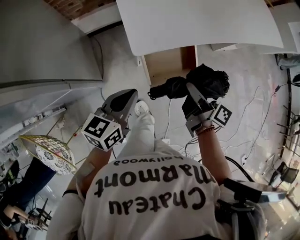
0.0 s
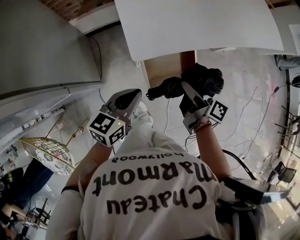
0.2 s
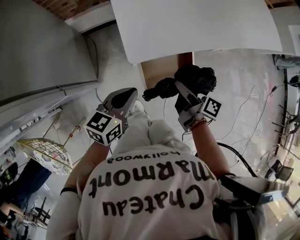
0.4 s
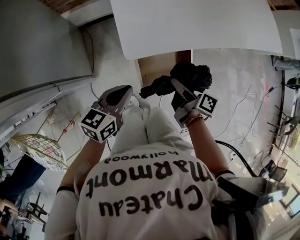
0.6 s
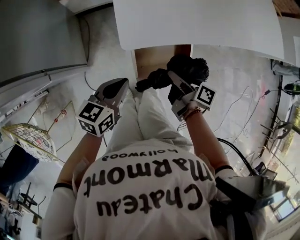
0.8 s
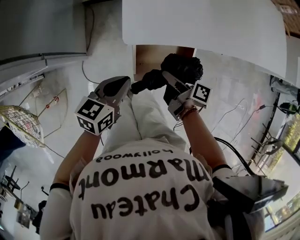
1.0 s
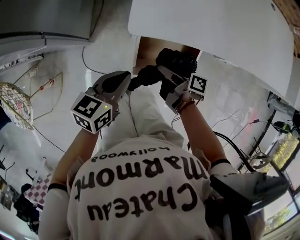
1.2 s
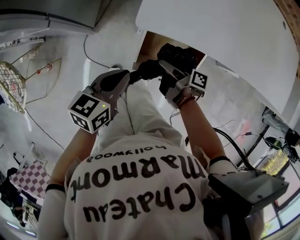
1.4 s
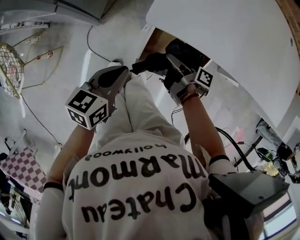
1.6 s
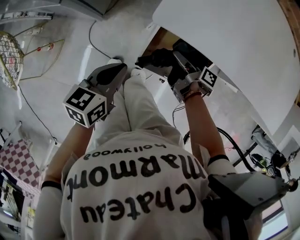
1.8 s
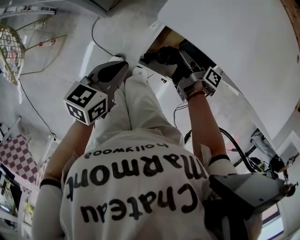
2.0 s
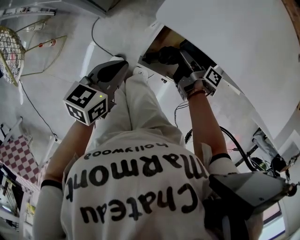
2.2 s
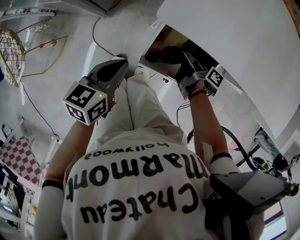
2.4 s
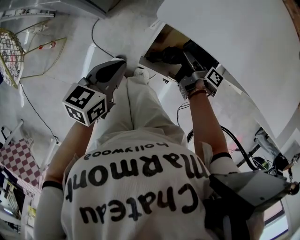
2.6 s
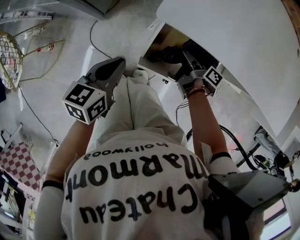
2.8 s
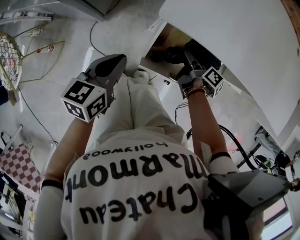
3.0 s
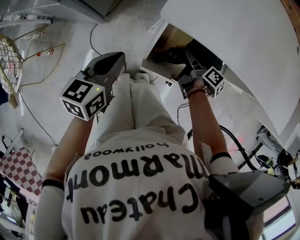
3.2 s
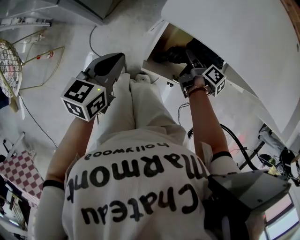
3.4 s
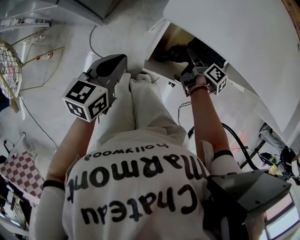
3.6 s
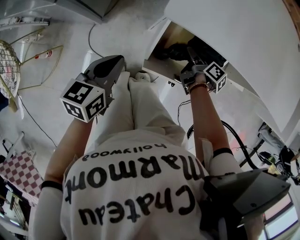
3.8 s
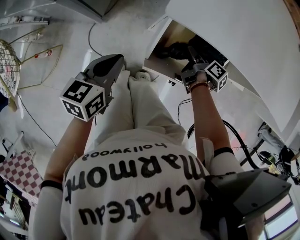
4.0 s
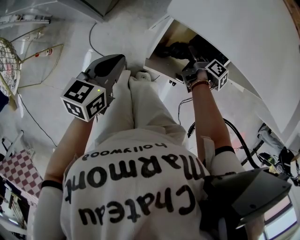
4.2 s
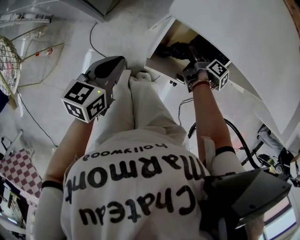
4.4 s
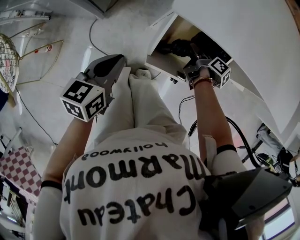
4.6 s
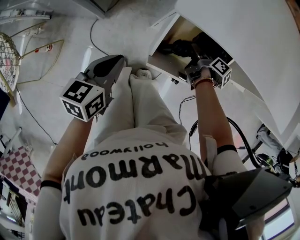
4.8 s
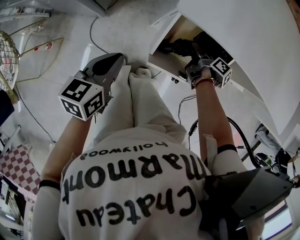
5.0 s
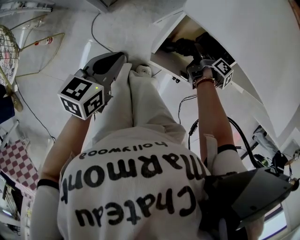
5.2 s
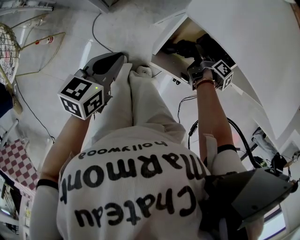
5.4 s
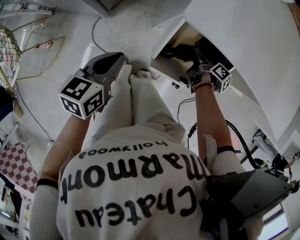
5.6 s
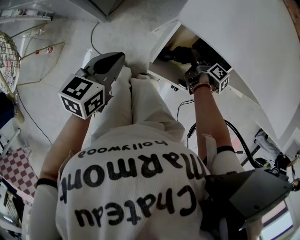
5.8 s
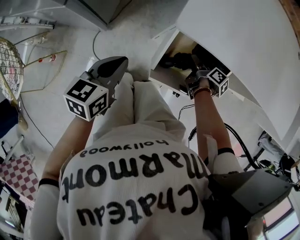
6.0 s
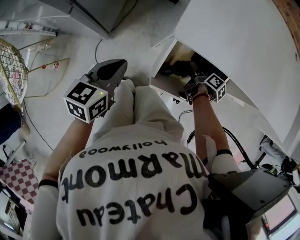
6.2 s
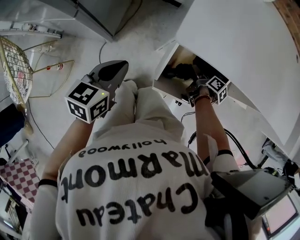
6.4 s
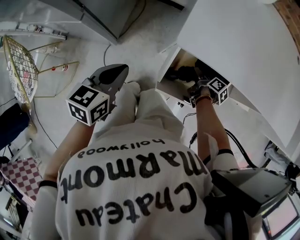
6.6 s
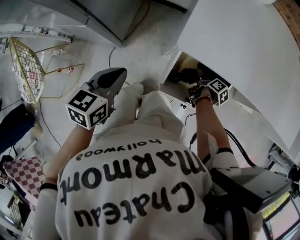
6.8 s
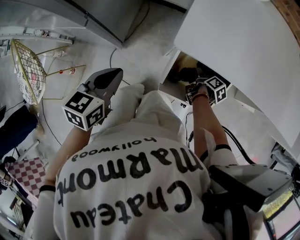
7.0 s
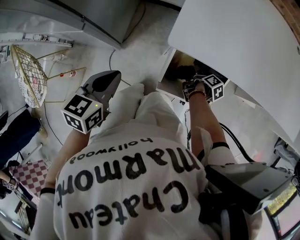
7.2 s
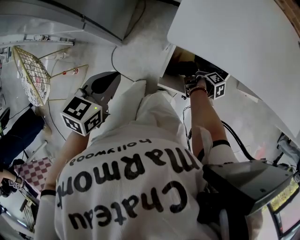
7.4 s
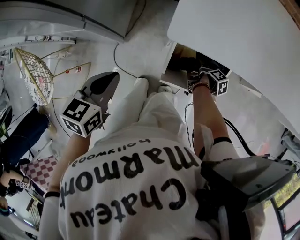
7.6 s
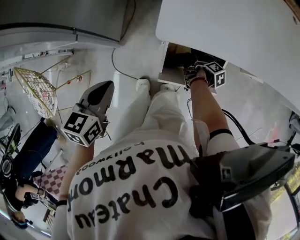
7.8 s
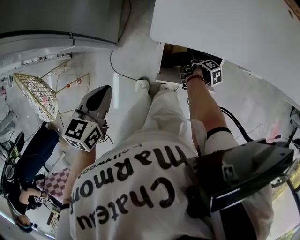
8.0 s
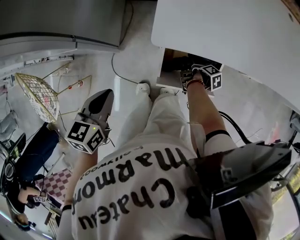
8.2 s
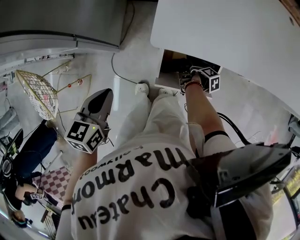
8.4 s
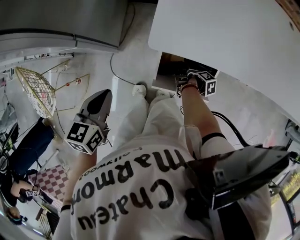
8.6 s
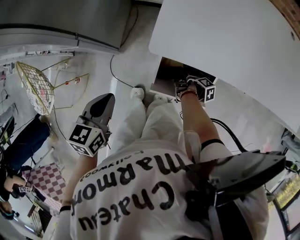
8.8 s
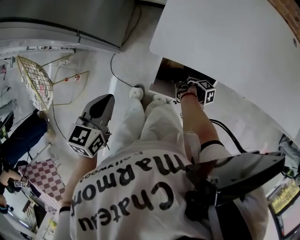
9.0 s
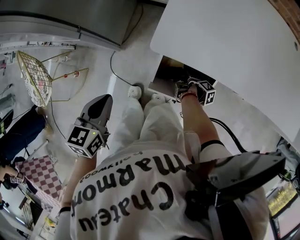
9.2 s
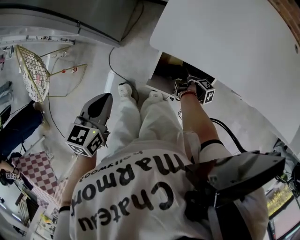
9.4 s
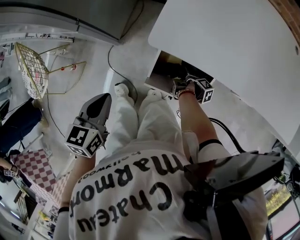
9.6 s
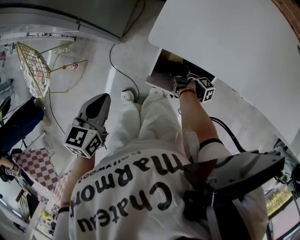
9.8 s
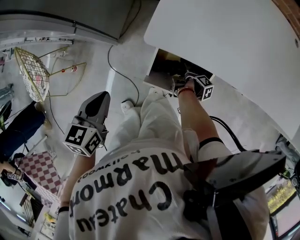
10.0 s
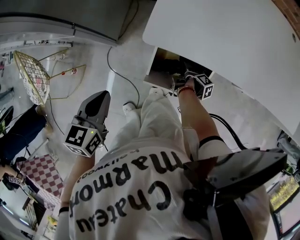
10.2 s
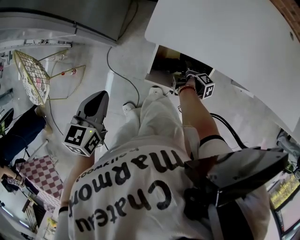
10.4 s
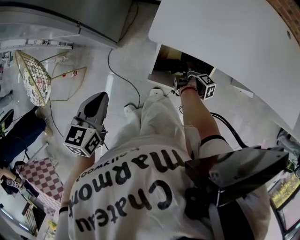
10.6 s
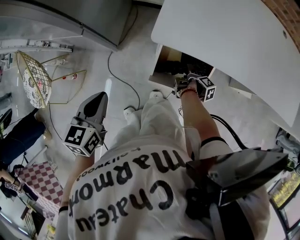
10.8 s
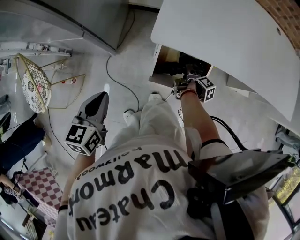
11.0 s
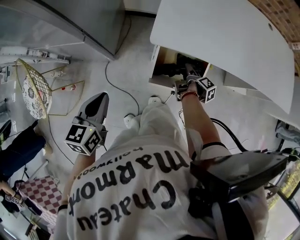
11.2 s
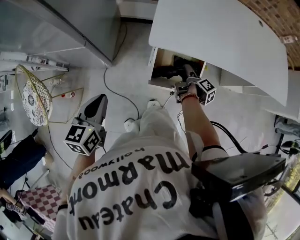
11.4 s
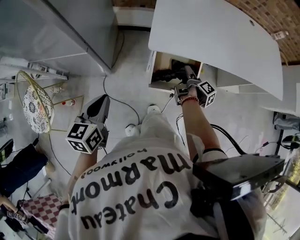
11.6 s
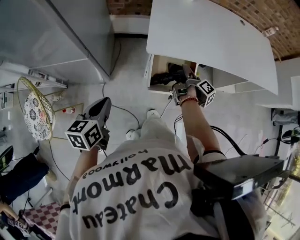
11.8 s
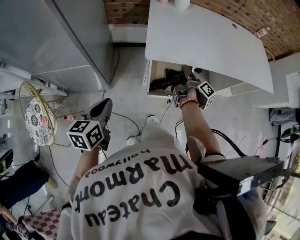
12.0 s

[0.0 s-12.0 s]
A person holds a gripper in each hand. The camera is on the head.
0.0 to 1.6 s: The left gripper shifts roughly 10 cm downward, and swivels roughly 30 degrees.
6.0 to 7.6 s: The left gripper heads upward, covering roughly 10 cm.
10.4 to 12.0 s: The left gripper shifts by about 10 cm.

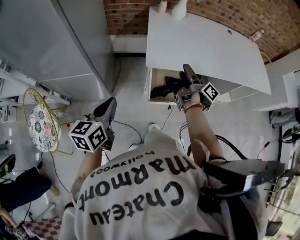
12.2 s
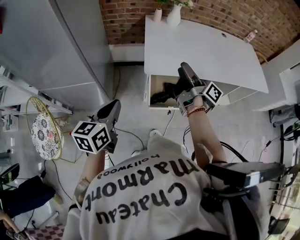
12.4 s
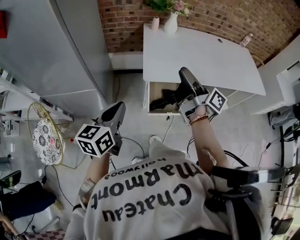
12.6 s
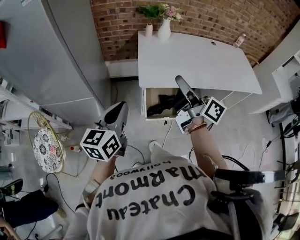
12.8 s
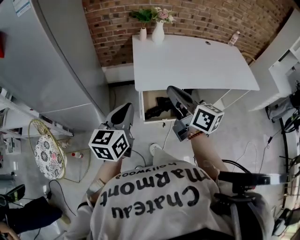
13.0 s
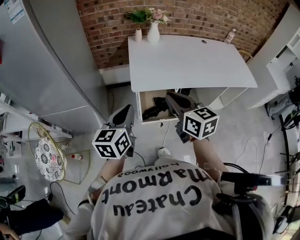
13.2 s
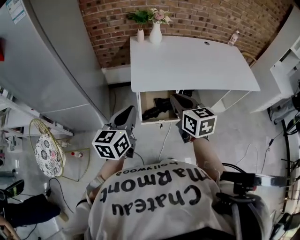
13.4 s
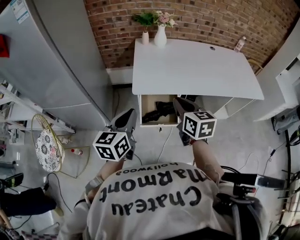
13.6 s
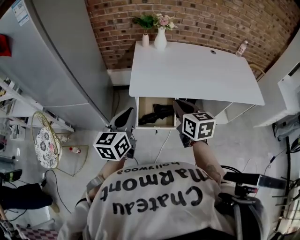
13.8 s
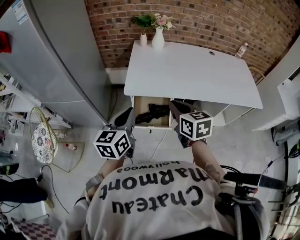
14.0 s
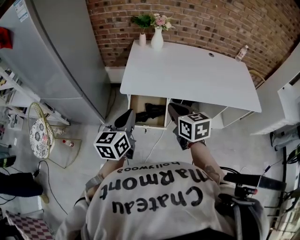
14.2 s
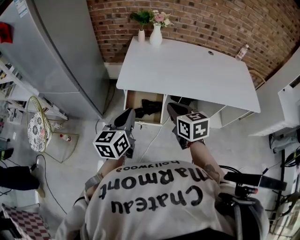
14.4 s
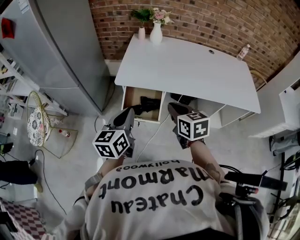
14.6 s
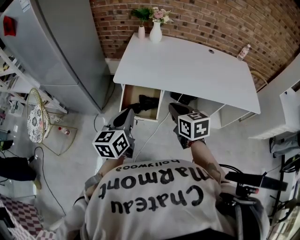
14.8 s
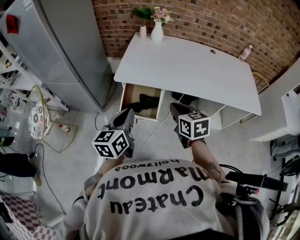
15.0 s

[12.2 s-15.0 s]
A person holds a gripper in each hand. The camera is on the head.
12.2 to 13.6 s: The left gripper moves about 20 cm.
13.6 to 15.0 s: The left gripper changes place by roughly 20 cm.

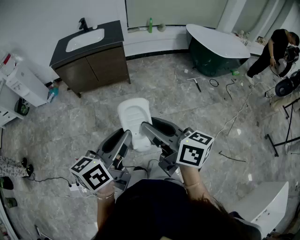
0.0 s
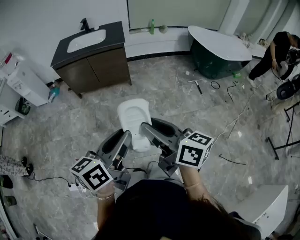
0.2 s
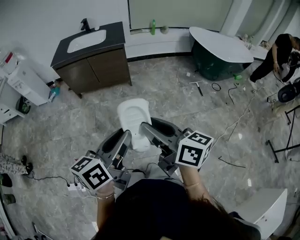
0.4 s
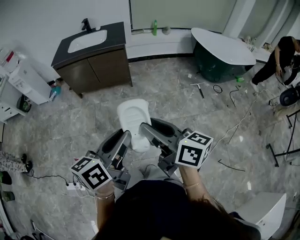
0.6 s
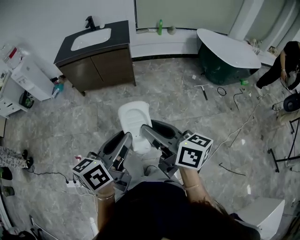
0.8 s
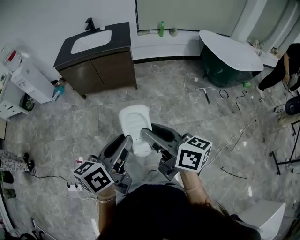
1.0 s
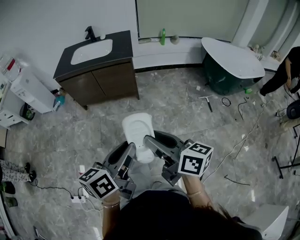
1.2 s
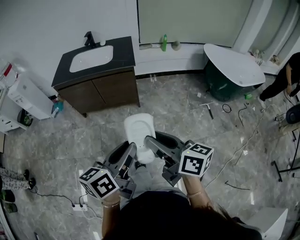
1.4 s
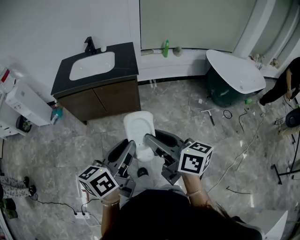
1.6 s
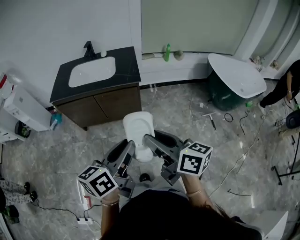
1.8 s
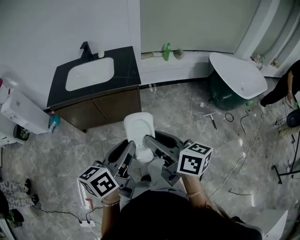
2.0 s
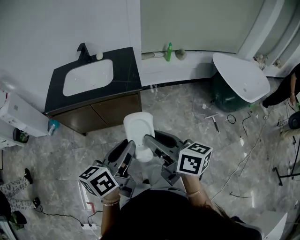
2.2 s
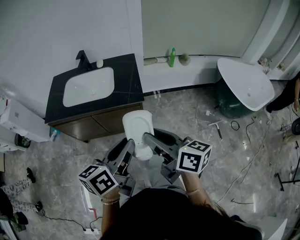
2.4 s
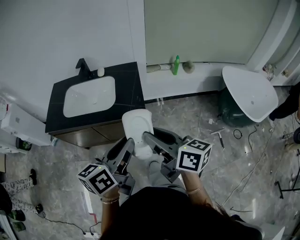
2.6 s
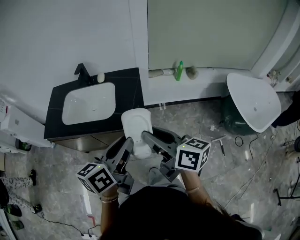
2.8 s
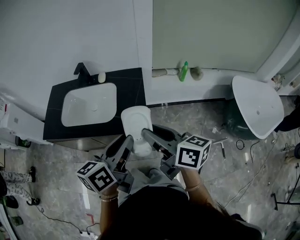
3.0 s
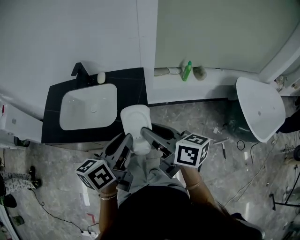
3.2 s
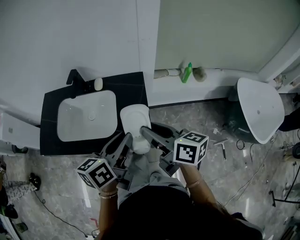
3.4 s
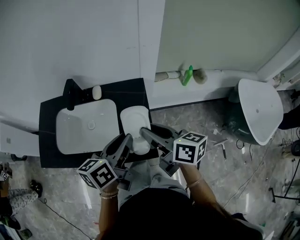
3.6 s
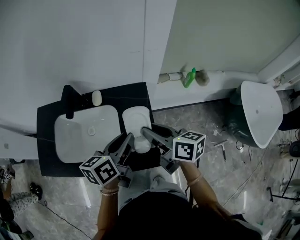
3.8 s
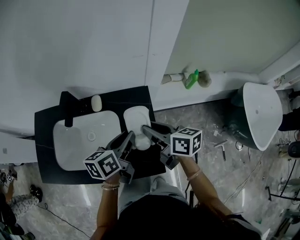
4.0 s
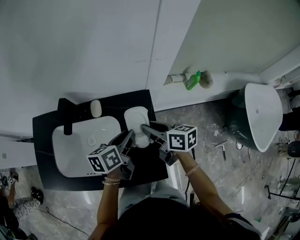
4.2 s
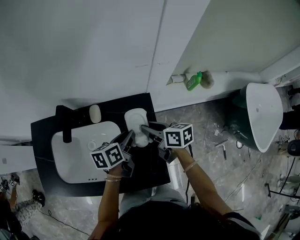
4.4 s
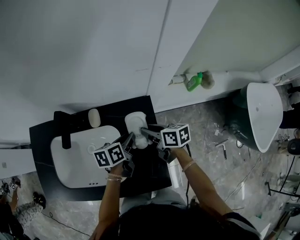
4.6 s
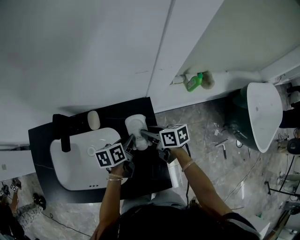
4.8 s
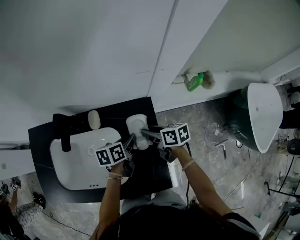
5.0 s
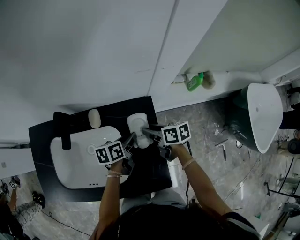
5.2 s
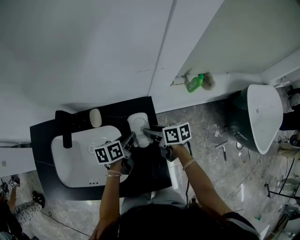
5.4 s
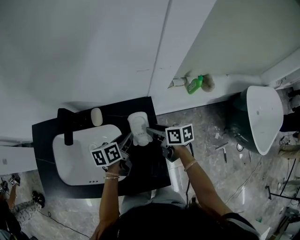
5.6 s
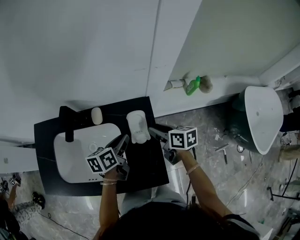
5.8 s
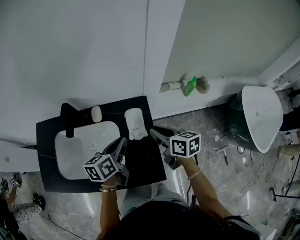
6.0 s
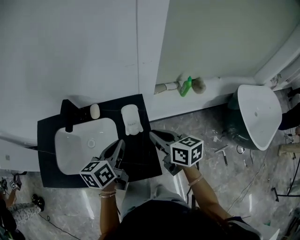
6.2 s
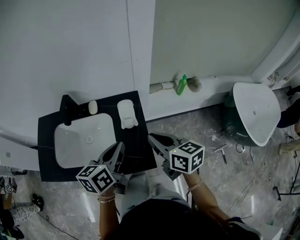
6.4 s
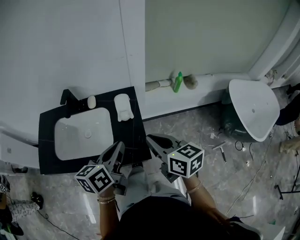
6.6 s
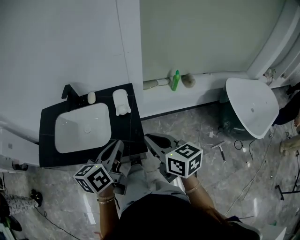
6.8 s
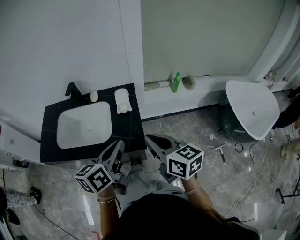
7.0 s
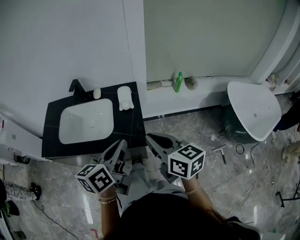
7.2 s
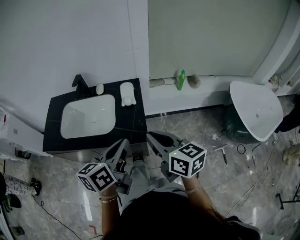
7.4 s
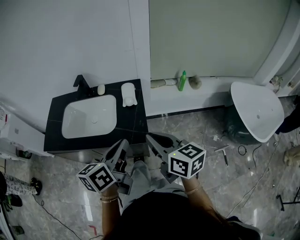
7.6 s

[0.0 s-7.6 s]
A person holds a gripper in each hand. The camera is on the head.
0.0 to 1.6 s: The grippers both shift forward by some 35 cm.
1.6 to 3.0 s: Both grippers are carried forward, roughly 50 cm.
3.0 to 4.6 s: The two grippers go some 50 cm forward and downward. The right gripper turns by approximately 30 degrees. Meanwhile the left gripper swivels roughly 30 degrees.
4.6 to 6.0 s: The grippers both shift upward and backward by about 10 cm.
6.0 to 7.6 s: The two grippers go approximately 30 cm backward and upward.

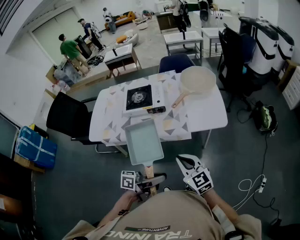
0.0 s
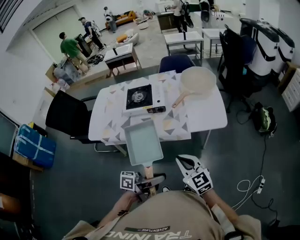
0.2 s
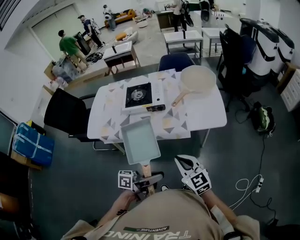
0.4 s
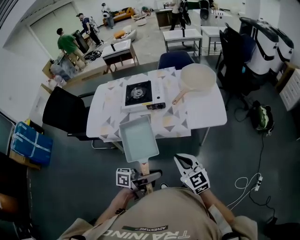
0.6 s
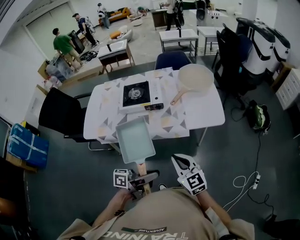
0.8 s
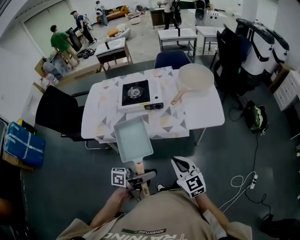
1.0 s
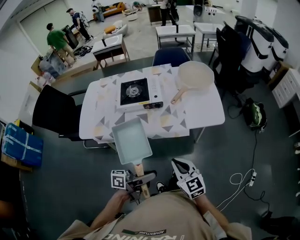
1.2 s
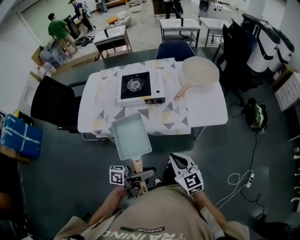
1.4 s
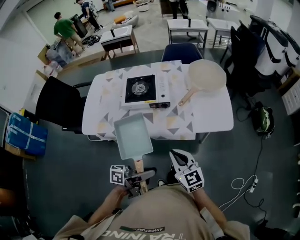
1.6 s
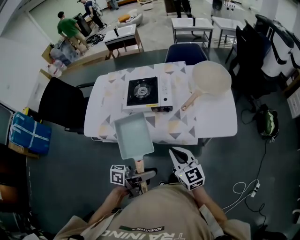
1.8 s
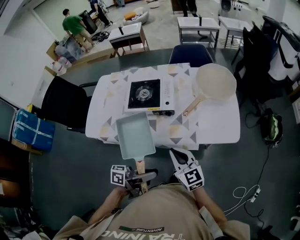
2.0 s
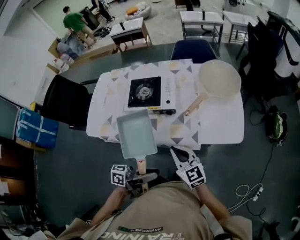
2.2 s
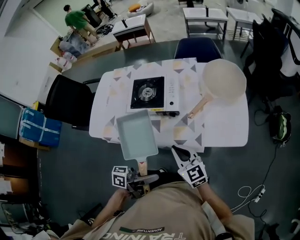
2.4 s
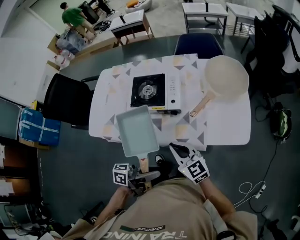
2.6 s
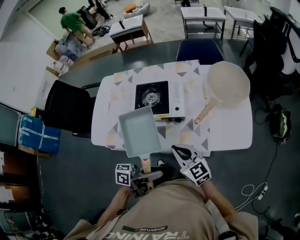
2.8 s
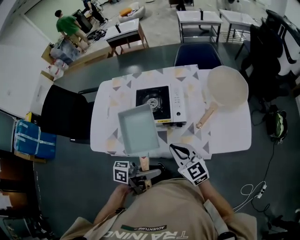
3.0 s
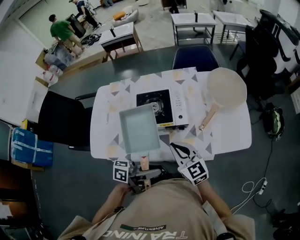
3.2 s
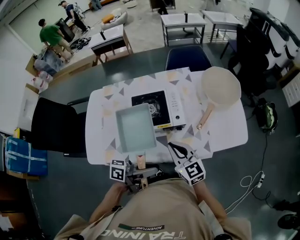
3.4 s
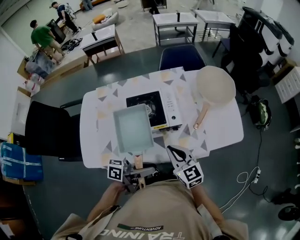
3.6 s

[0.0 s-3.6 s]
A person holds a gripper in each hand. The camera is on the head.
0.0 to 1.8 s: The right gripper moves about 15 cm.
1.8 to 3.6 s: The right gripper changes place by some 20 cm.
